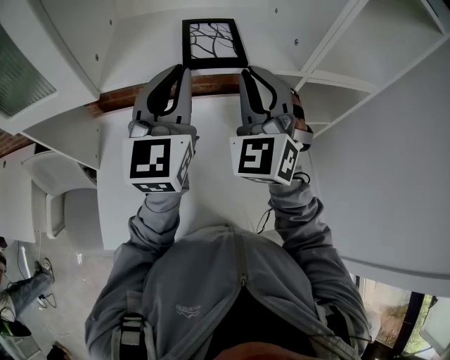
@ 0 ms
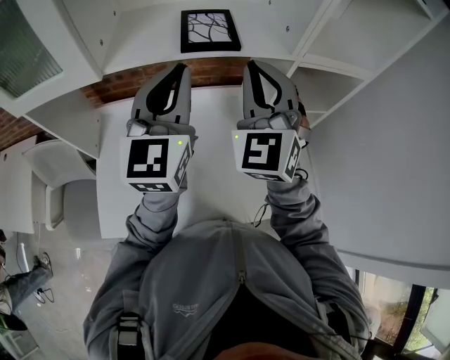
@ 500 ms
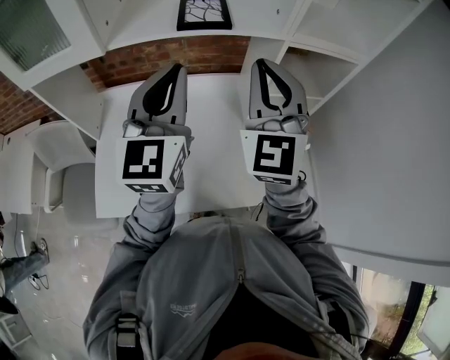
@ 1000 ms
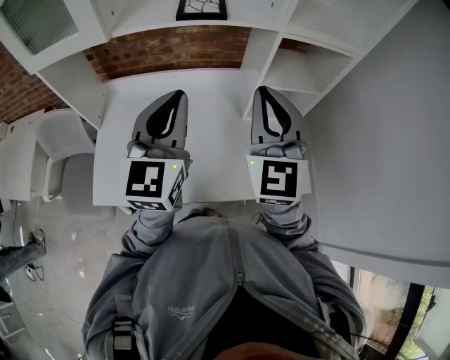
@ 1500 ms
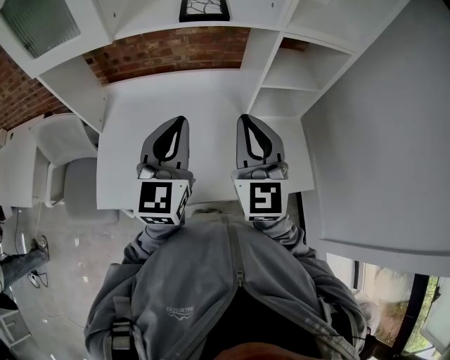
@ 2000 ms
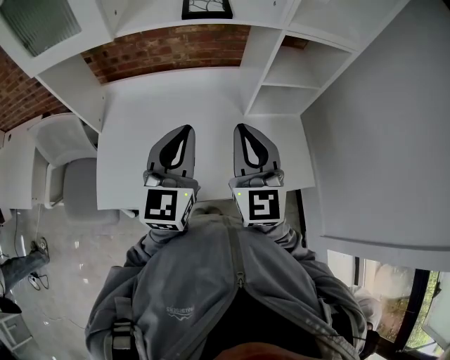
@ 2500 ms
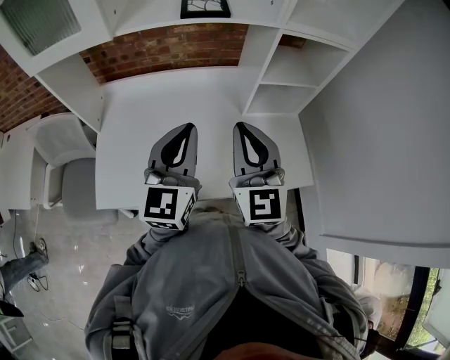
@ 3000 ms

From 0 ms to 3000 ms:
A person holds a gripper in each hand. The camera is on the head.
From 0 ms to 1500 ms: The right gripper goes about 20 cm backward and to the right, and changes its angle by about 30 degrees. The left gripper is displaced backward by roughly 20 cm.
From 1500 ms to 3000 ms: The right gripper shifts roughly 10 cm downward and backward. Meanwhile the left gripper moves downward, some 5 cm.

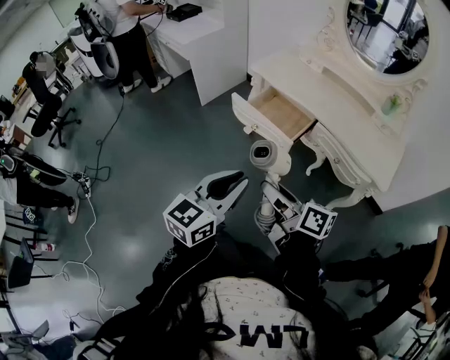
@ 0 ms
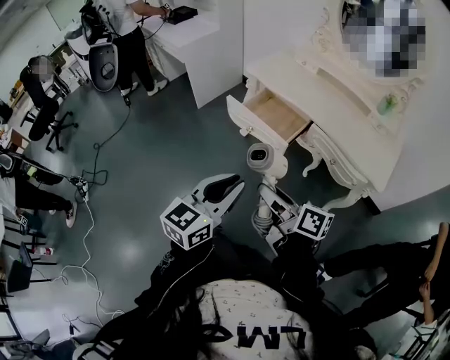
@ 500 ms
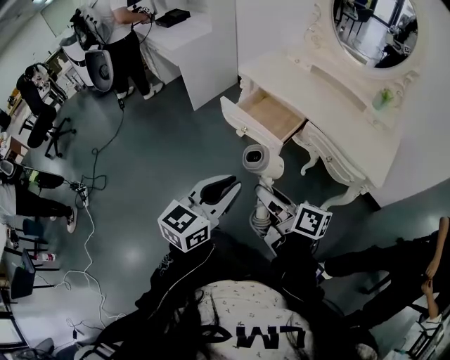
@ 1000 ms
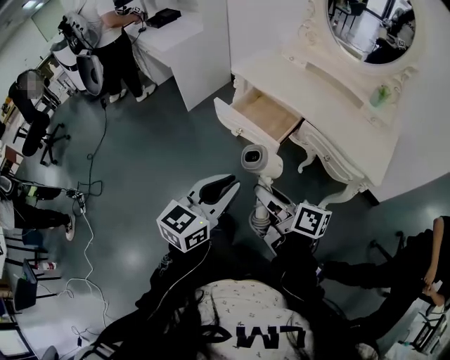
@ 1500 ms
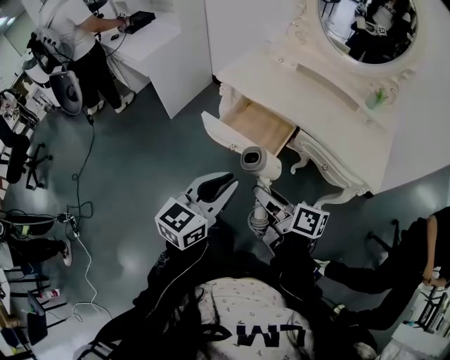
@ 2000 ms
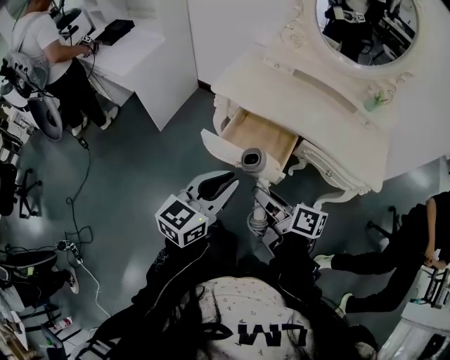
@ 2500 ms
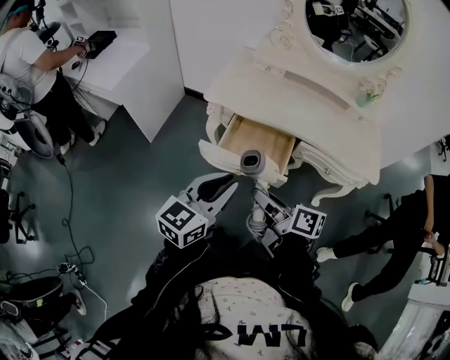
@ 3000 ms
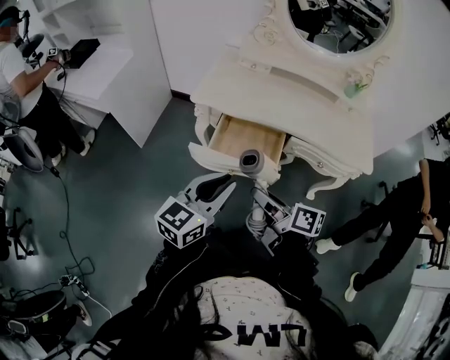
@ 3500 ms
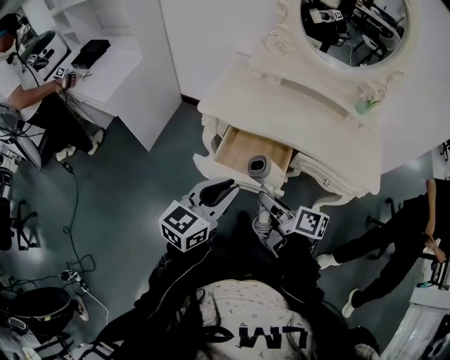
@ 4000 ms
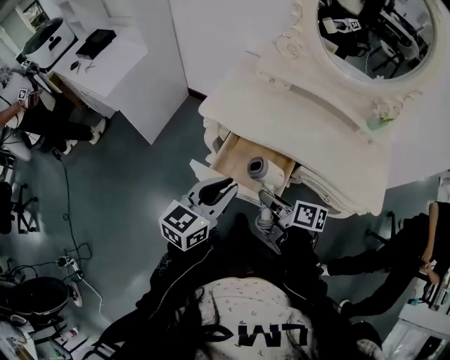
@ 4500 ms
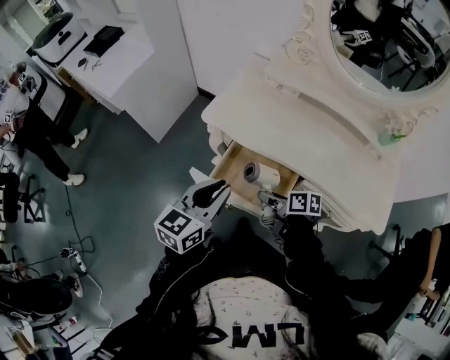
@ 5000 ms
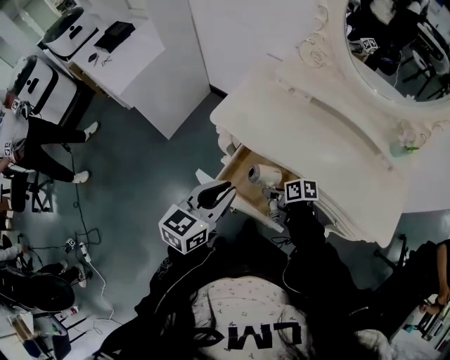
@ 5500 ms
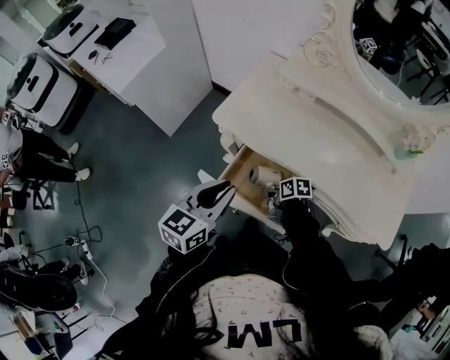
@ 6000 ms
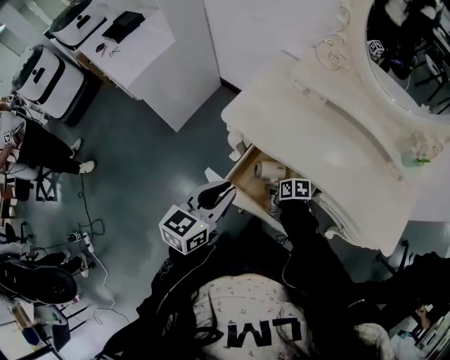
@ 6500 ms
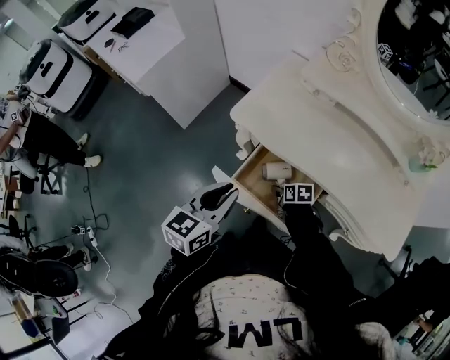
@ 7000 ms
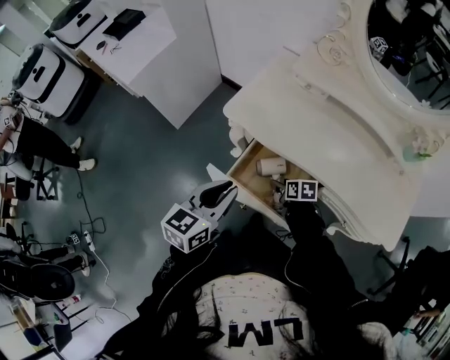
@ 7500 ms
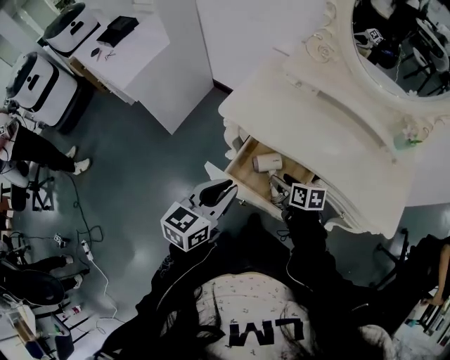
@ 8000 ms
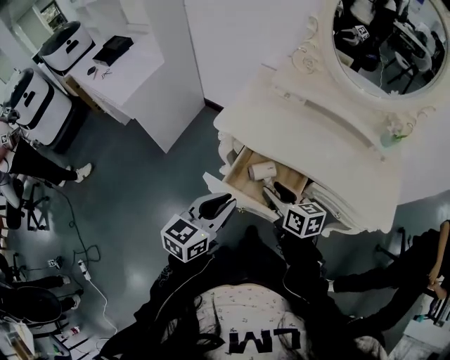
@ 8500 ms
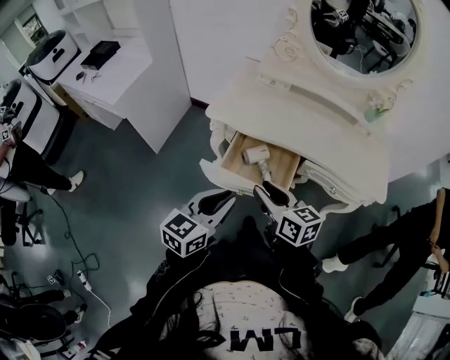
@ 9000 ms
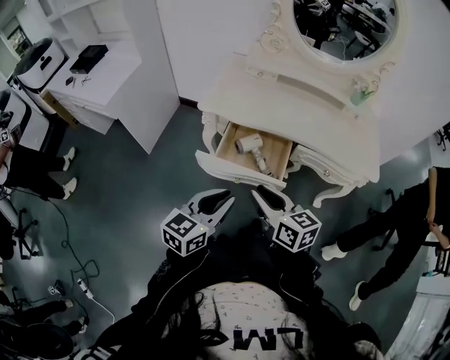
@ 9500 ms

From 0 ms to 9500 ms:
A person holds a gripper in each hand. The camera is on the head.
From 0 ms to 2000 ms: Both grippers move forward, roughly 15 cm.
From 2000 ms to 4000 ms: The left gripper moves forward and to the left, some 15 cm. Meanwhile the right gripper moves forward, approximately 15 cm.
From 4000 ms to 5500 ms: The left gripper moves forward, some 10 cm. The right gripper shifts approximately 25 cm downward and forward, and turns by about 40 degrees.
From 5500 ms to 7500 ms: The right gripper is displaced downward by some 5 cm.
From 7500 ms to 9500 ms: The left gripper travels backward by approximately 15 cm, and swivels some 20 degrees; the right gripper moves upward and backward, roughly 35 cm, tips its fingers upward by roughly 40 degrees, and closes up.

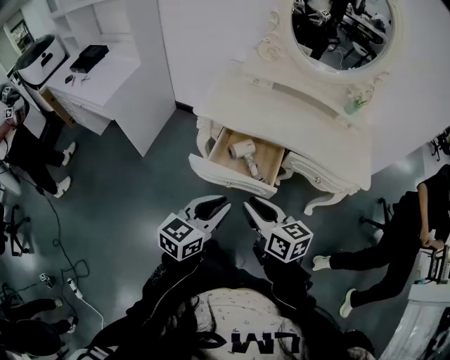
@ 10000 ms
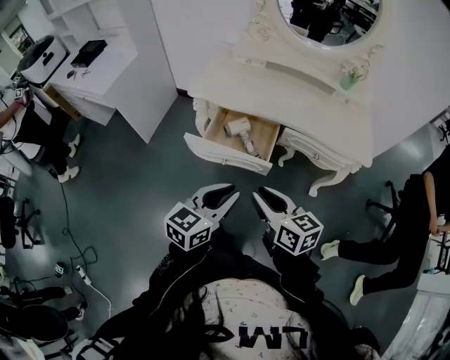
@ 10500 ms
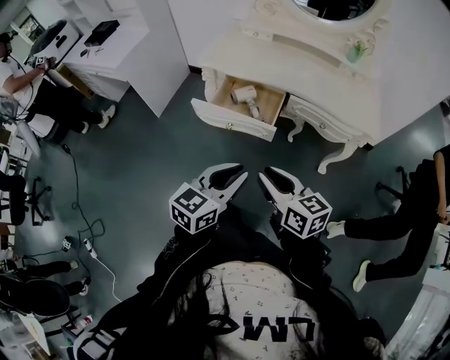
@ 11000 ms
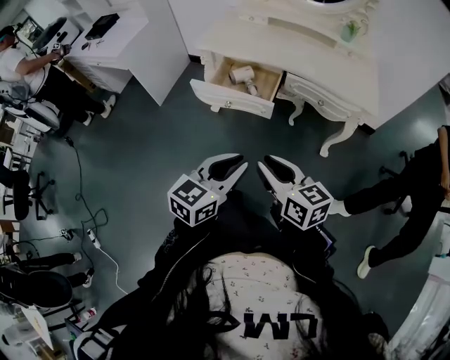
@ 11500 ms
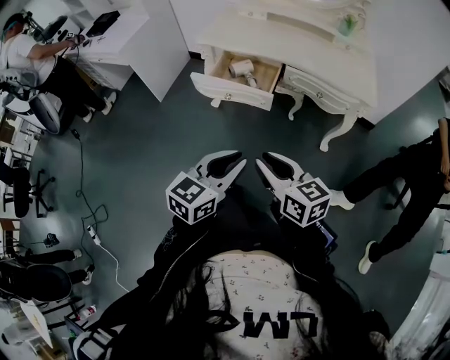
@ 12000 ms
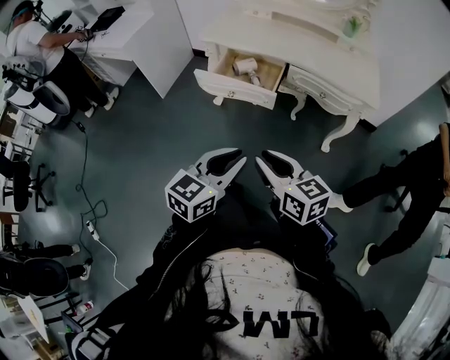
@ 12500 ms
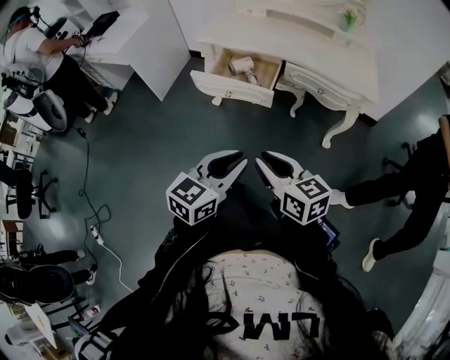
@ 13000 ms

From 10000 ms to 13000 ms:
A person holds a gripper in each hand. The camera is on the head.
From 10000 ms to 11500 ms: The grippers both shift backward and to the right by approximately 20 cm.
From 11500 ms to 13000 ms: The grippers move only a little.

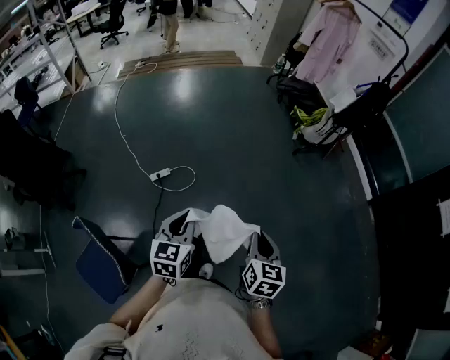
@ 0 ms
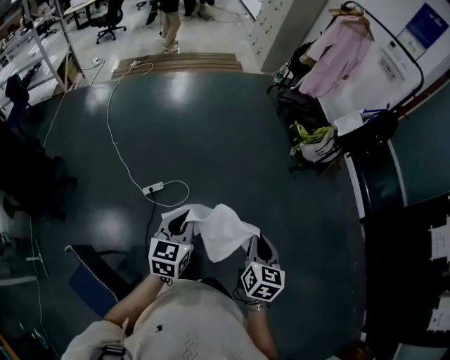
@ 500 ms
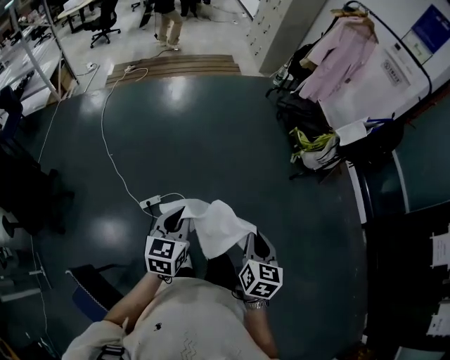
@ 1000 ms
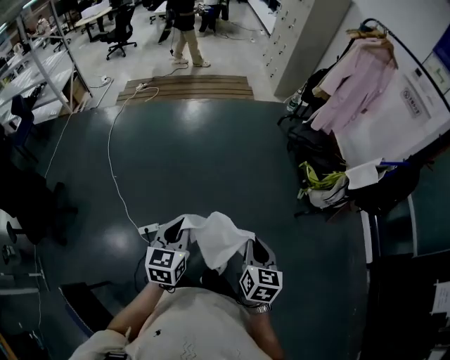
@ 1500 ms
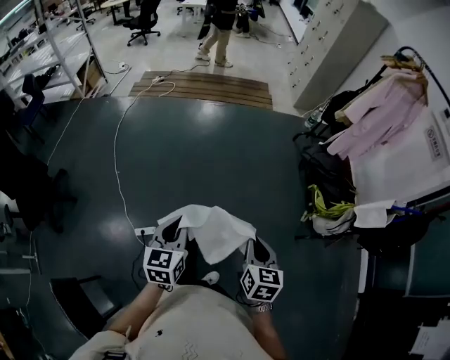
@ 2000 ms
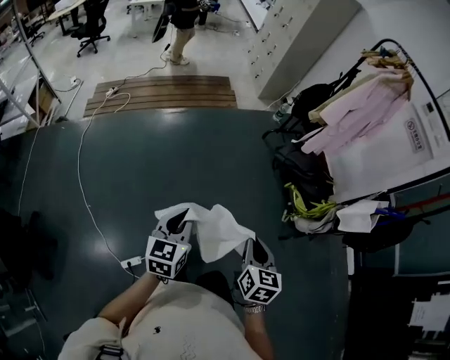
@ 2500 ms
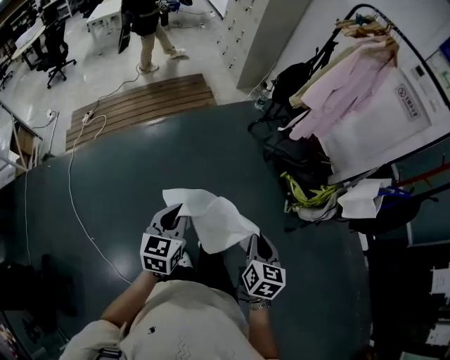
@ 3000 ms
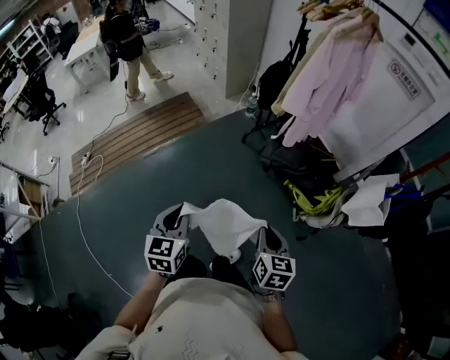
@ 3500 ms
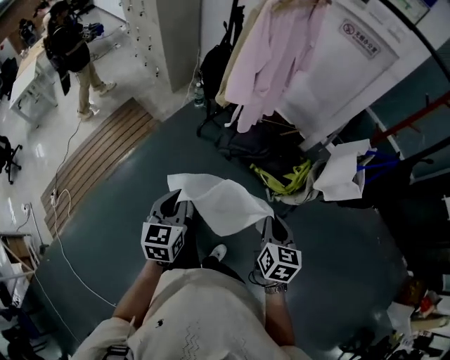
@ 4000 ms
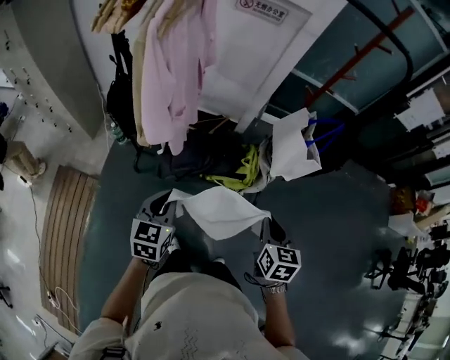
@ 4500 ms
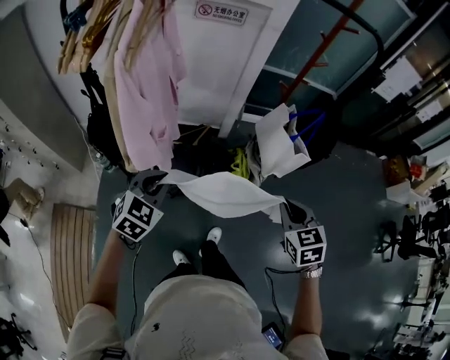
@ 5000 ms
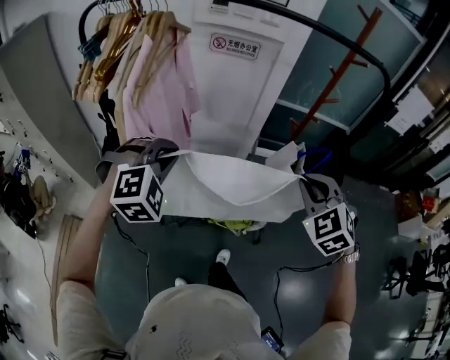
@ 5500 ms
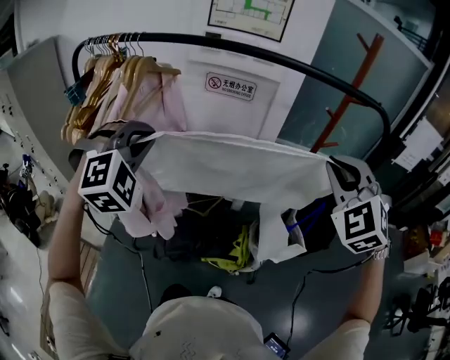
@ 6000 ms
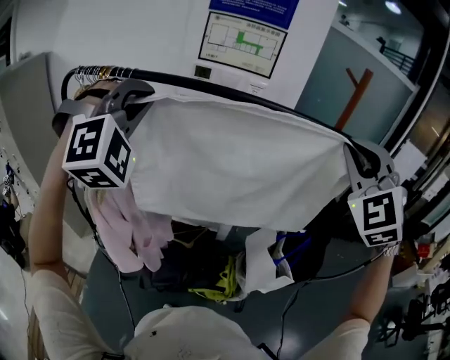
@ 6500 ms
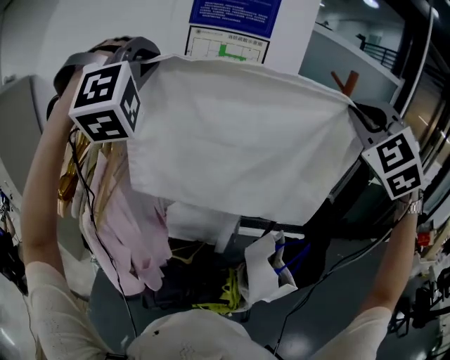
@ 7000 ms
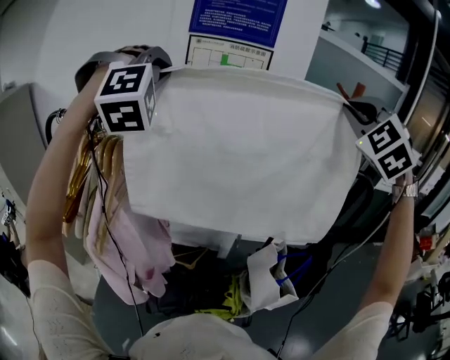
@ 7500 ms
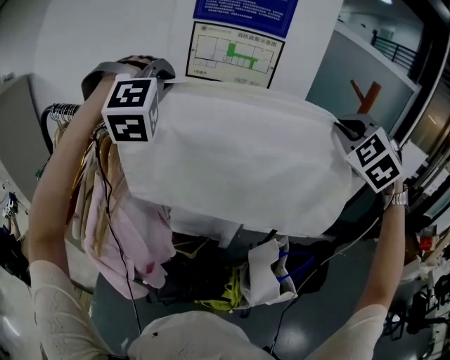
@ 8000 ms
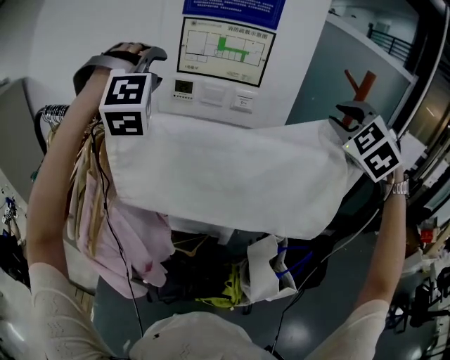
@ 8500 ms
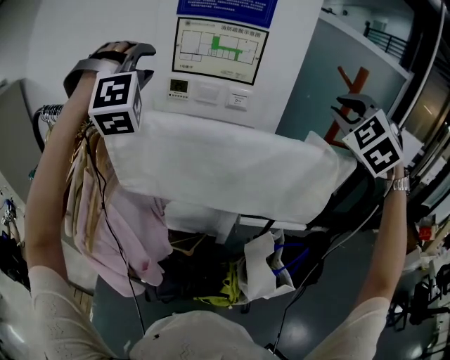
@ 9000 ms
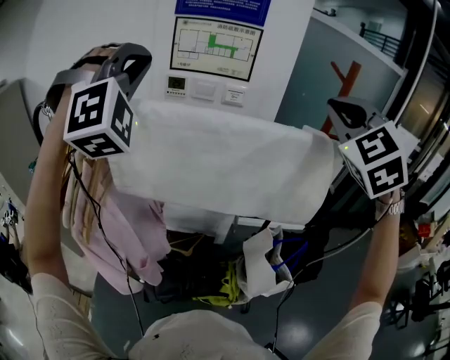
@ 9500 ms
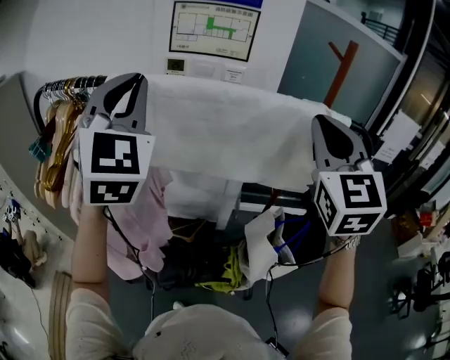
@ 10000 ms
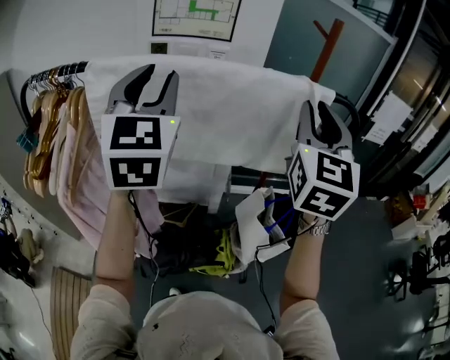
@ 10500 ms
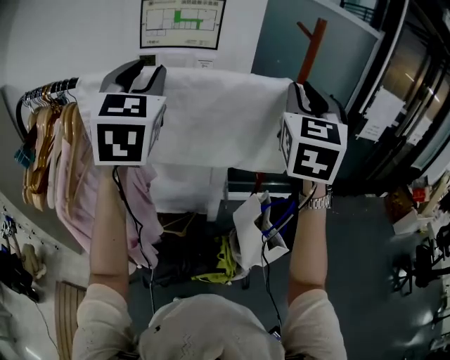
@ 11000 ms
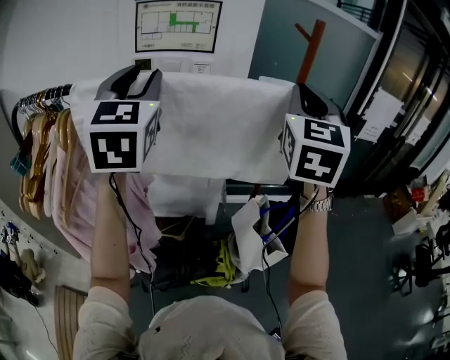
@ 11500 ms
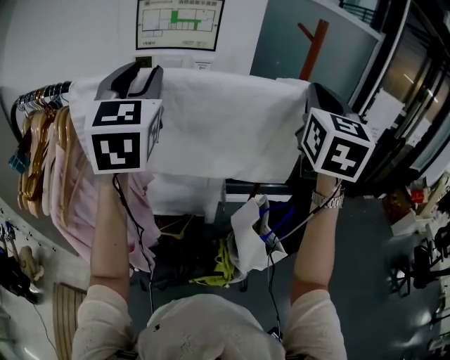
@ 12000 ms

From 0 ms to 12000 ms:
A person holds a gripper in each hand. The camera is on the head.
From 0 ms to 2000 ms: Both grippers are carried forward, roughly 60 cm.
From 2000 ms to 4000 ms: The pair of grippers is taken approximately 60 cm. The right gripper rotates roughly 50 degrees. The left gripper rotates roughly 50 degrees.
From 4000 ms to 6000 ms: The pair of grippers is taken roughly 50 cm. The right gripper rolls counterclockwise, seen from behind, by about 60 degrees; the left gripper rotates around the line of its fingers by approximately 90 degrees, clockwise from behind.
From 6000 ms to 8000 ms: Both grippers move forward and upward, some 35 cm. The left gripper changes its angle by about 20 degrees.
From 8000 ms to 10000 ms: The grippers both shift backward by about 15 cm. The right gripper changes its angle by about 50 degrees; the left gripper rotates around the line of its fingers by about 60 degrees, counterclockwise from behind, and opens, then closes again.
From 10000 ms to 12000 ms: Both grippers travel together to the right and forward, roughly 10 cm. The left gripper swivels roughly 20 degrees, and opens its fingers. Meanwhile the right gripper rotates about 20 degrees.
